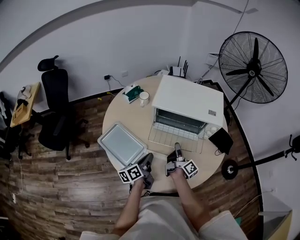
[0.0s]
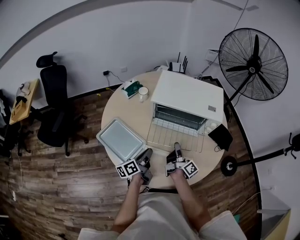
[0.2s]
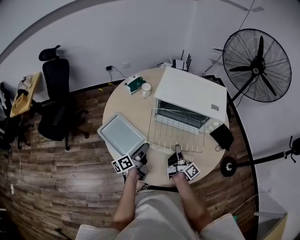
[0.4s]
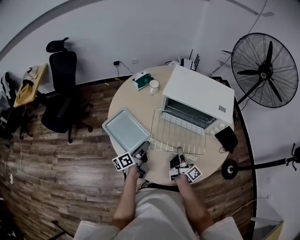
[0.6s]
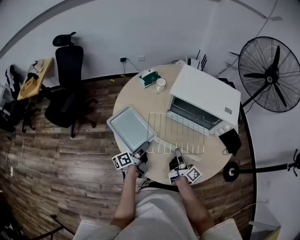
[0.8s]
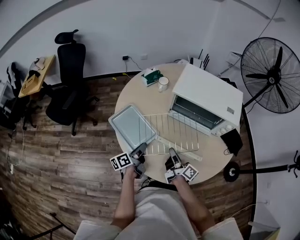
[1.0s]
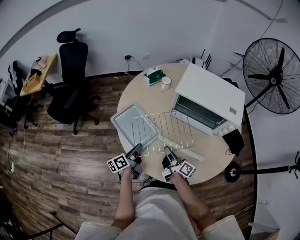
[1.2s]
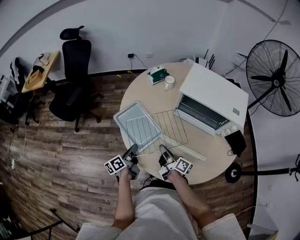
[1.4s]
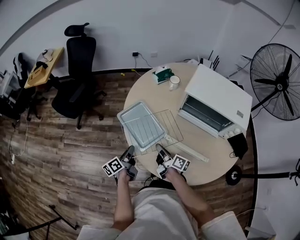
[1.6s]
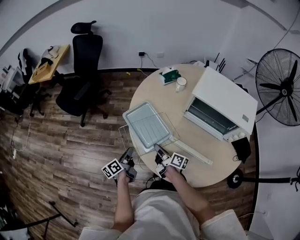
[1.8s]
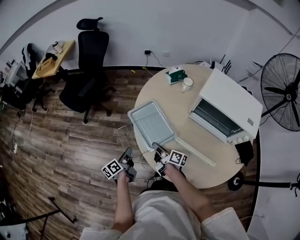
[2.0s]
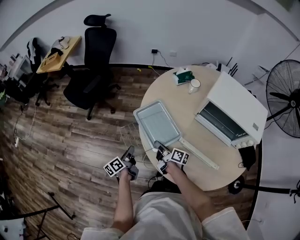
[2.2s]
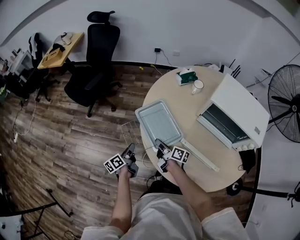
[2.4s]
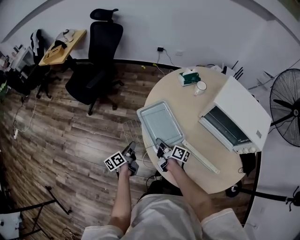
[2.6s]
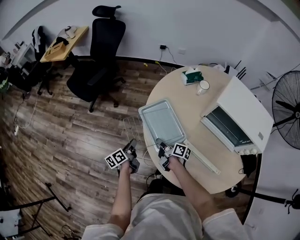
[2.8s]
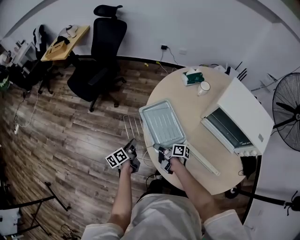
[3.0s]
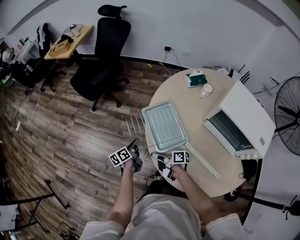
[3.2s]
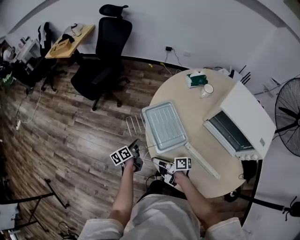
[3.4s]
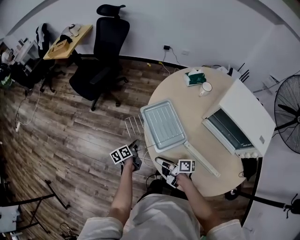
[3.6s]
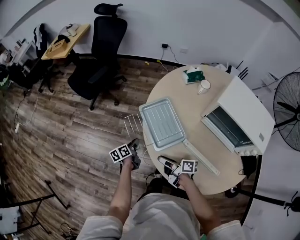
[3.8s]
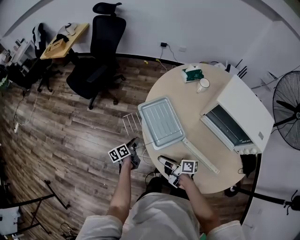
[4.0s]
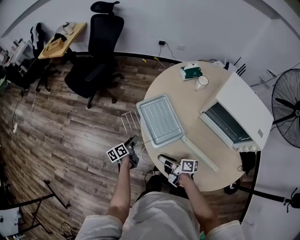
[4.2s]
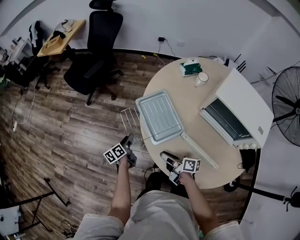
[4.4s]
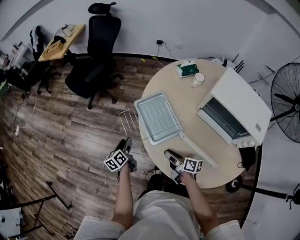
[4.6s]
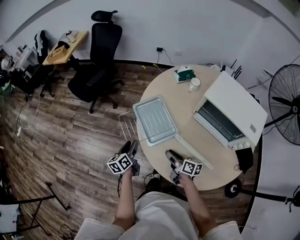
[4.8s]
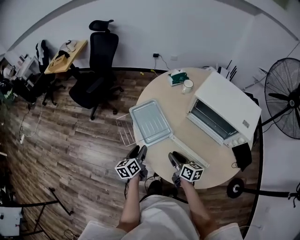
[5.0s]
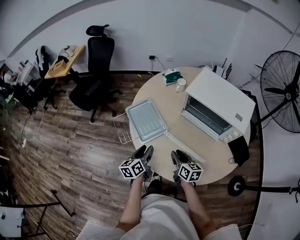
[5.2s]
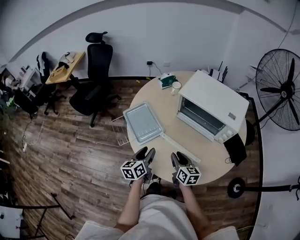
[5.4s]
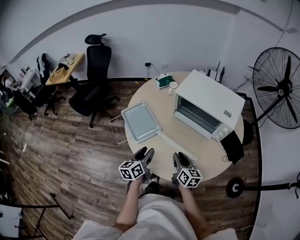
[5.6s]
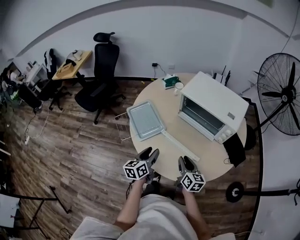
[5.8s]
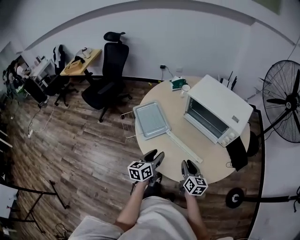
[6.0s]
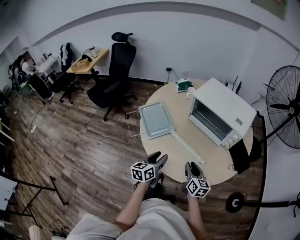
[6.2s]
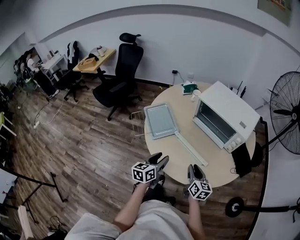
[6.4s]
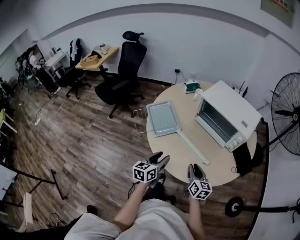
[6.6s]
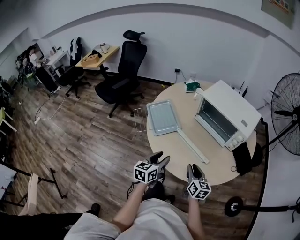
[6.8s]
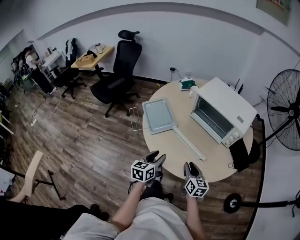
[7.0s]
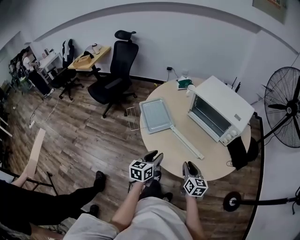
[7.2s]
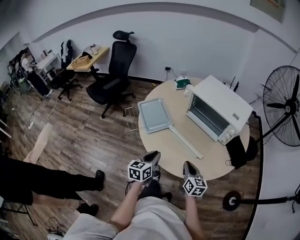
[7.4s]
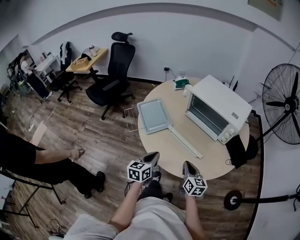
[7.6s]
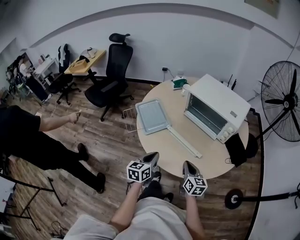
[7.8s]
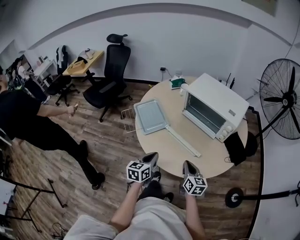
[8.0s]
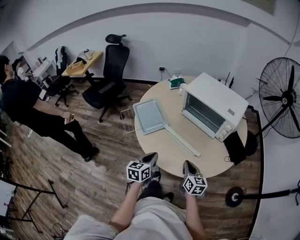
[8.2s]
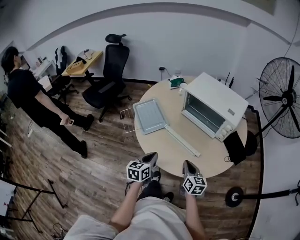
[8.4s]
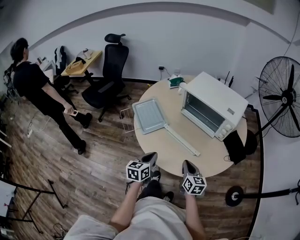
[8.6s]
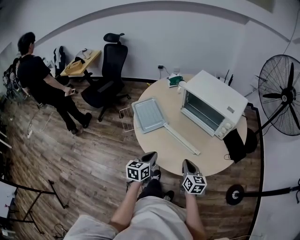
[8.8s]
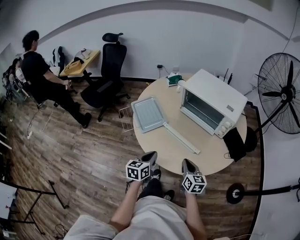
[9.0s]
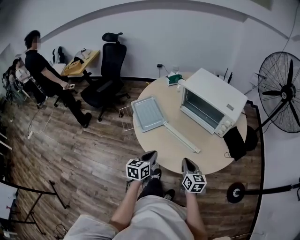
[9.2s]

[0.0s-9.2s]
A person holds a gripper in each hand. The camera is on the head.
0.0s to 1.6s: The right gripper shifts by some 25 cm, and rotates about 40 degrees. Meanwhile the left gripper changes place by about 25 cm, and rotates about 20 degrees.
1.6s to 3.0s: The left gripper travels to the left, forward and downward by about 10 cm; the right gripper shifts some 15 cm to the left and downward, and turns by about 40 degrees.
3.0s to 4.6s: The right gripper travels backward, to the right and upward by some 15 cm, and turns by roughly 20 degrees. Meanwhile the left gripper opens up.
4.6s to 6.2s: The right gripper changes place by roughly 25 cm, and rotates roughly 40 degrees; the left gripper ends up some 35 cm from where it was, and changes its angle by about 30 degrees.
6.2s to 7.6s: The left gripper closes. Meanwhile the right gripper closes its fingers.
7.6s to 9.2s: The grippers stay close to where they were, moving slightly.

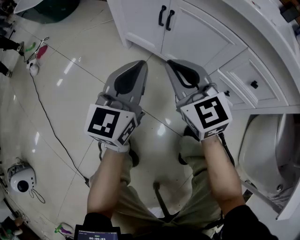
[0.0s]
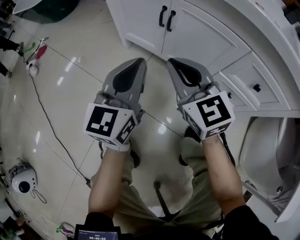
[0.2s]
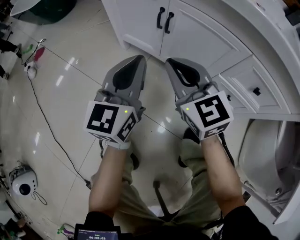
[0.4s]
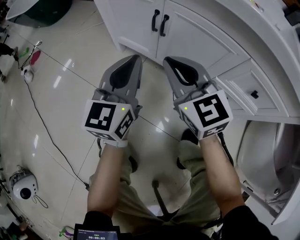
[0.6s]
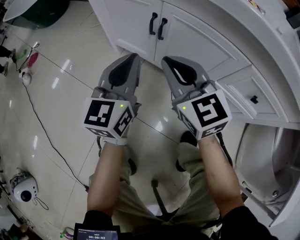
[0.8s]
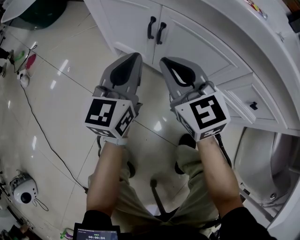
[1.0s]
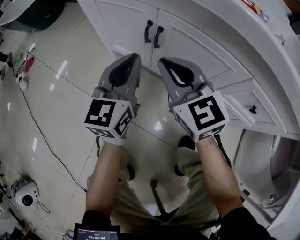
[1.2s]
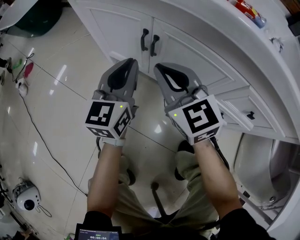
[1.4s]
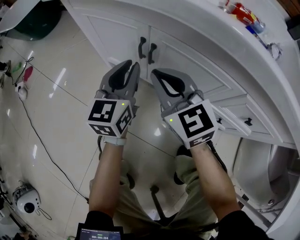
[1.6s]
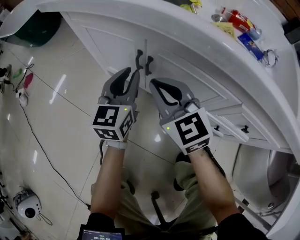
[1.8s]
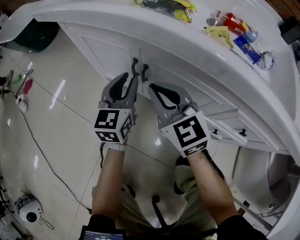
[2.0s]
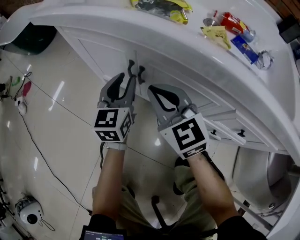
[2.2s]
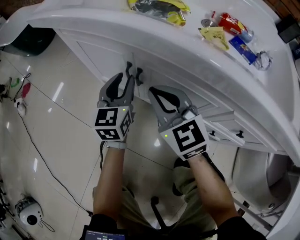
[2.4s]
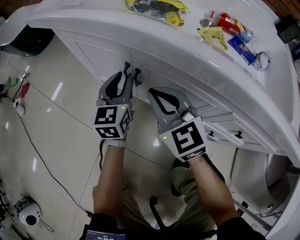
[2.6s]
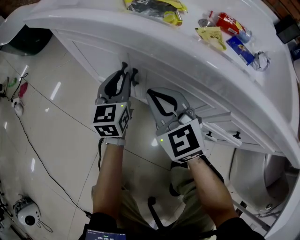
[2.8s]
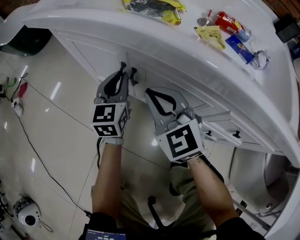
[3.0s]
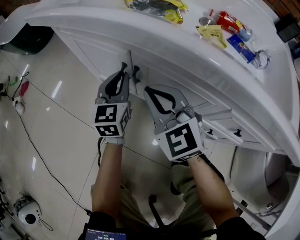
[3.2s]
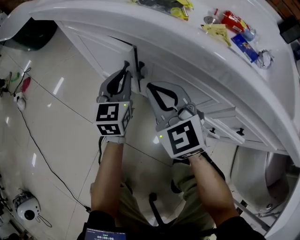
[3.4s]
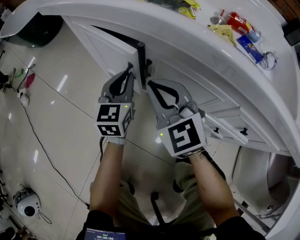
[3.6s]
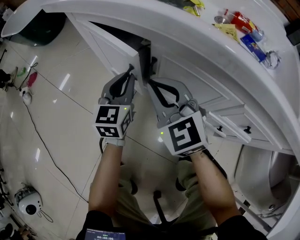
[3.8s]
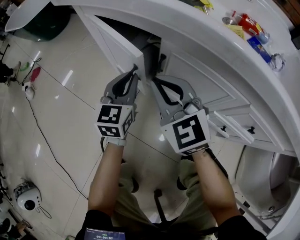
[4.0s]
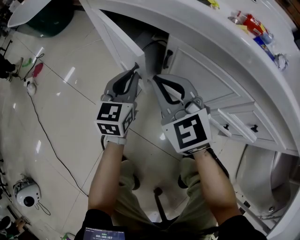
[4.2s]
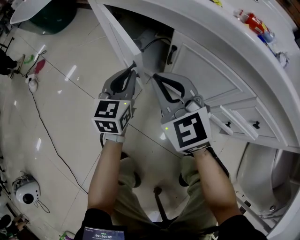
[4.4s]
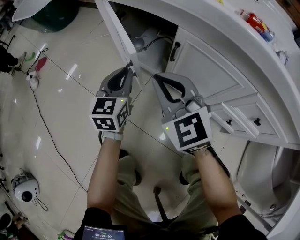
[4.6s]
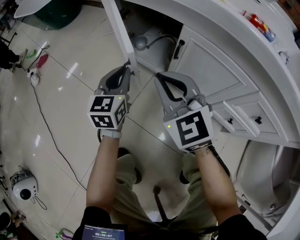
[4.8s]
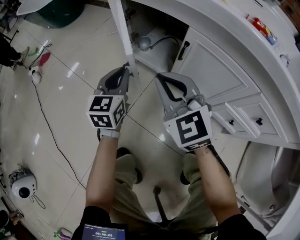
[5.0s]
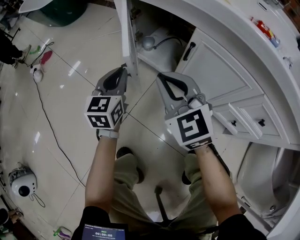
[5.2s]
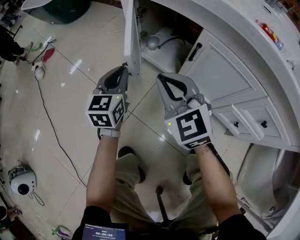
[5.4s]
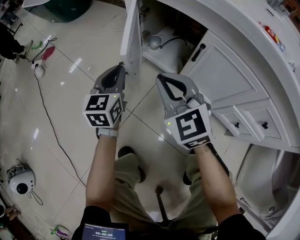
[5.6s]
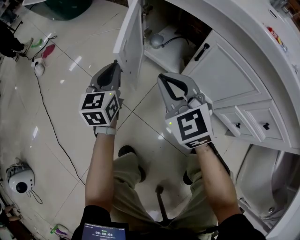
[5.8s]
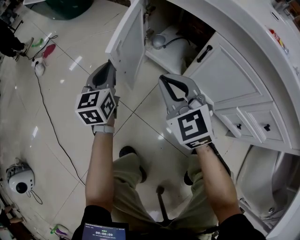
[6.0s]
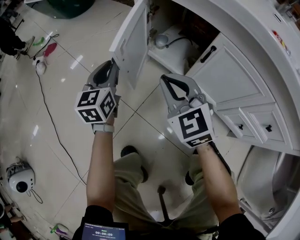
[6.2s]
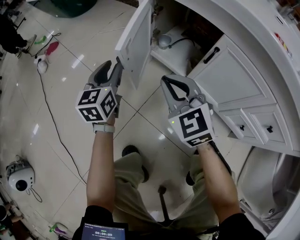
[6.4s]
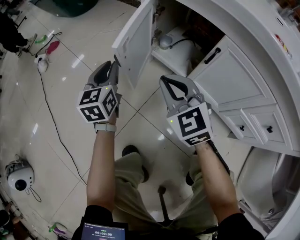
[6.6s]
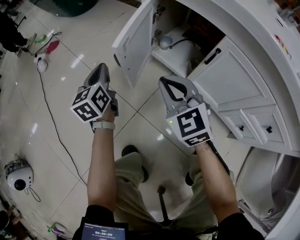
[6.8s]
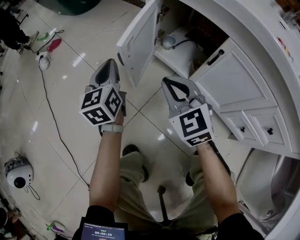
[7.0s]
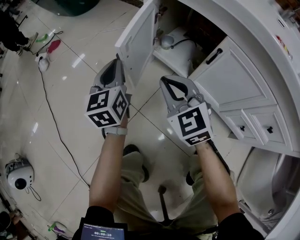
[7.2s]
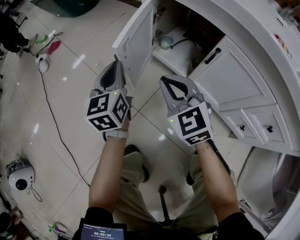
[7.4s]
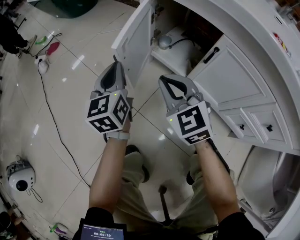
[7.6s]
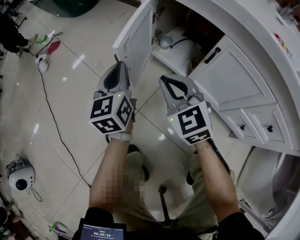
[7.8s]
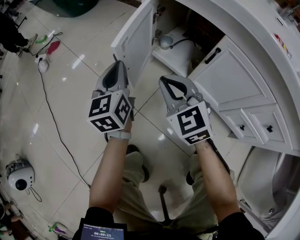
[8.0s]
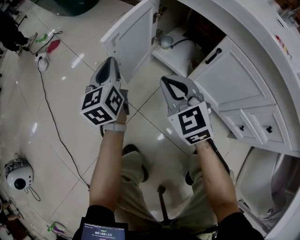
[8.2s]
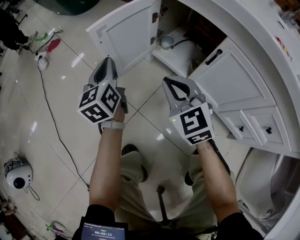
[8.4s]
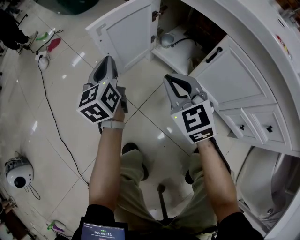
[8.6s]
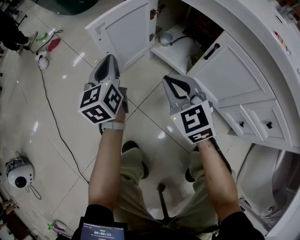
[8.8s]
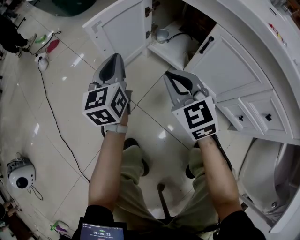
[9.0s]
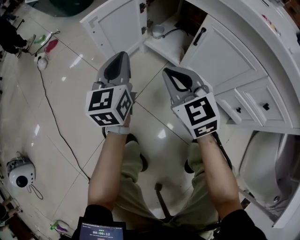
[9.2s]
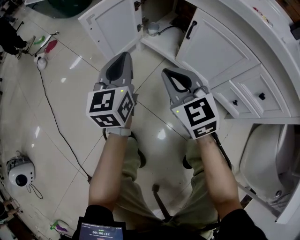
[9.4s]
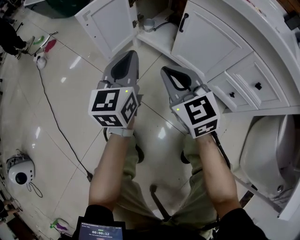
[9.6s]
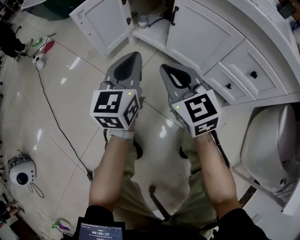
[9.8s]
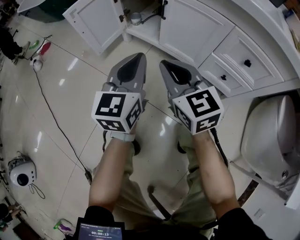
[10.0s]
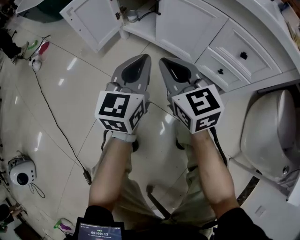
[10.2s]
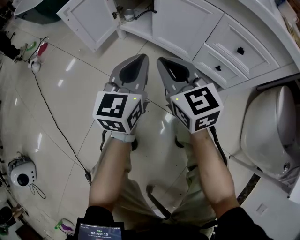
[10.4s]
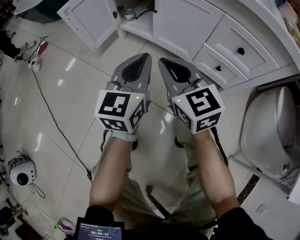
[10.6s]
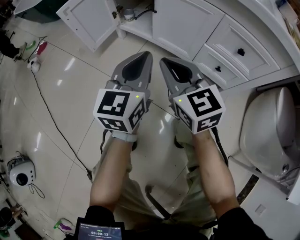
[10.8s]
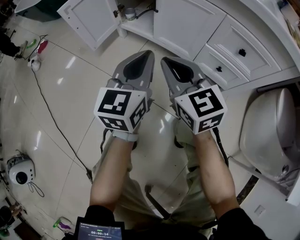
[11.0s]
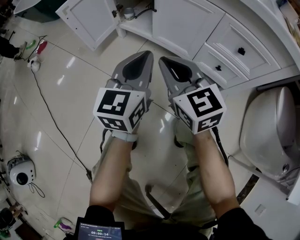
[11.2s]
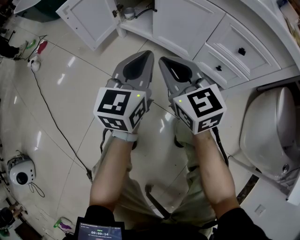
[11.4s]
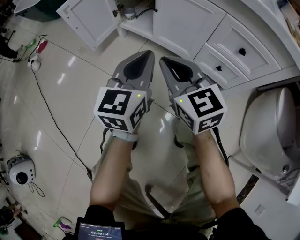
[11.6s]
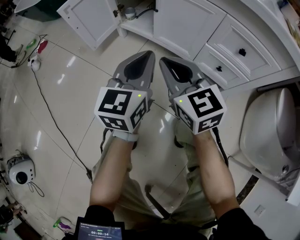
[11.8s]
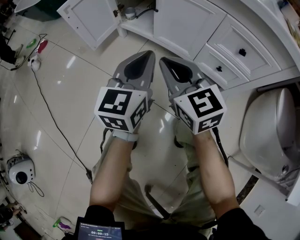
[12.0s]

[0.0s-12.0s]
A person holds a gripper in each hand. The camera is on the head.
0.0s to 1.6s: The two grippers go approximately 20 cm forward.
1.6s to 3.0s: The left gripper travels forward by roughly 5 cm.
3.0s to 4.4s: The left gripper shifts some 10 cm to the left and backward. Meanwhile the right gripper travels to the left by approximately 10 cm.
4.4s to 6.0s: The left gripper travels to the left by some 20 cm. Meanwhile the right gripper is displaced to the left by some 10 cm.
6.0s to 7.6s: The left gripper opens, then closes once more.
7.6s to 9.0s: The grippers stay close to where they were, moving slightly.
9.0s to 10.4s: The grippers both shift backward and to the right by roughly 30 cm. The left gripper changes its angle by about 30 degrees, while the right gripper changes its angle by roughly 20 degrees.
10.4s to 12.0s: The grippers move only a little.

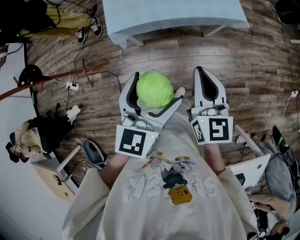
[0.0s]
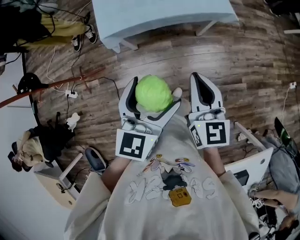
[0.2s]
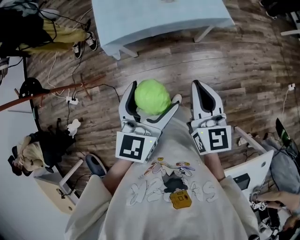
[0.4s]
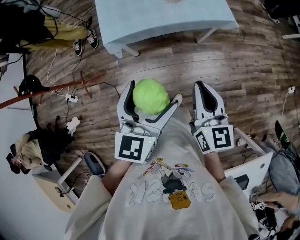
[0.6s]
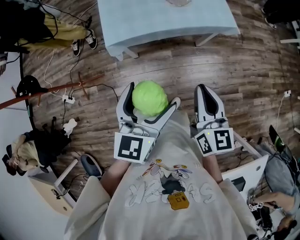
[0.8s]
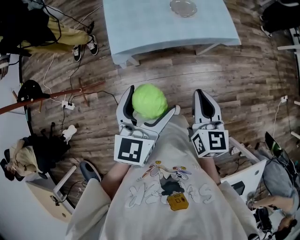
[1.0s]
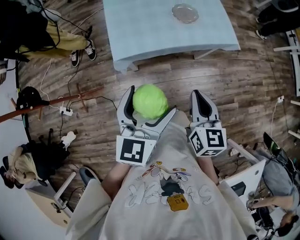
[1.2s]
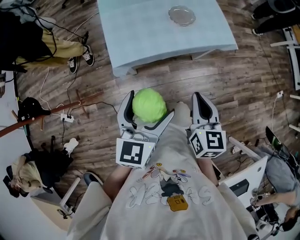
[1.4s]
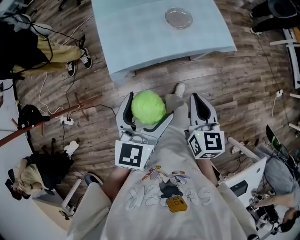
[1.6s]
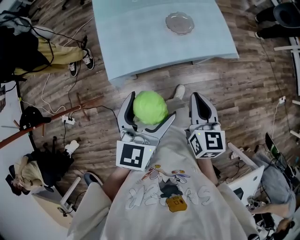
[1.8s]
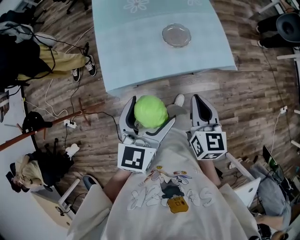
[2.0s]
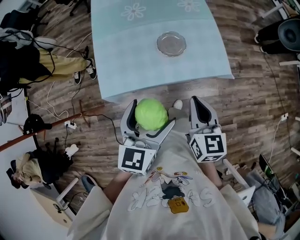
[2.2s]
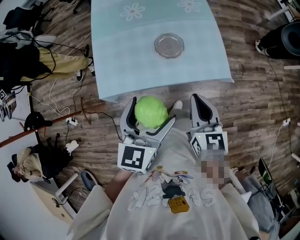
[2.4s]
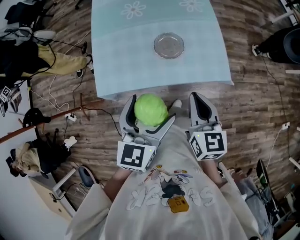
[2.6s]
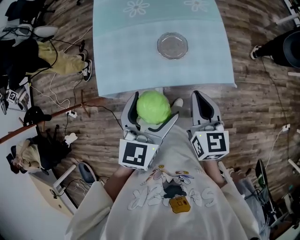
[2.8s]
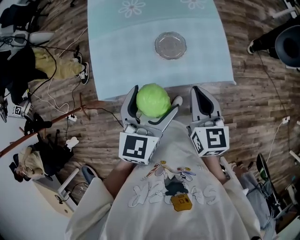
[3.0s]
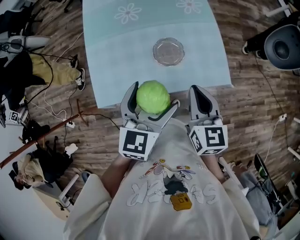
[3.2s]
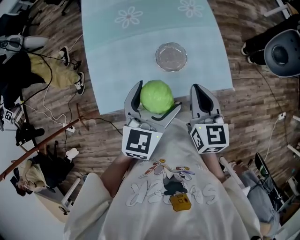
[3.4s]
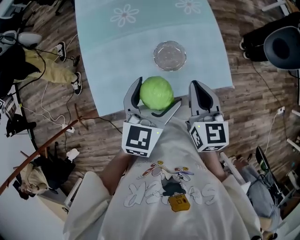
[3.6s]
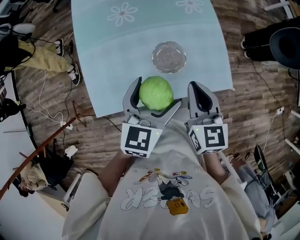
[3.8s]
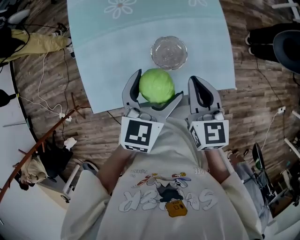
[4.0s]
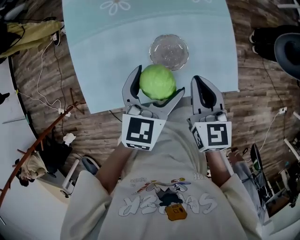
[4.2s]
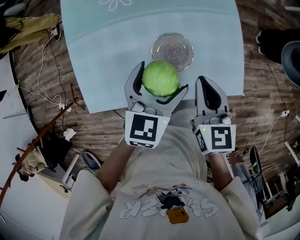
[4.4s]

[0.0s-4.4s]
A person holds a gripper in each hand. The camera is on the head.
0.0s to 1.4s: The left gripper is displaced to the left and forward by approximately 10 cm, while the right gripper moves to the left, approximately 5 cm.
1.4s to 3.0s: The grippers both shift forward and to the right by approximately 30 cm.
3.0s to 4.4s: The two grippers go some 20 cm forward and downward.
